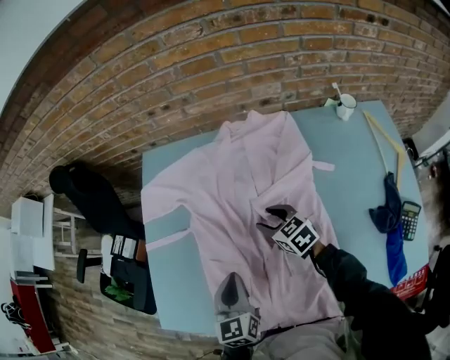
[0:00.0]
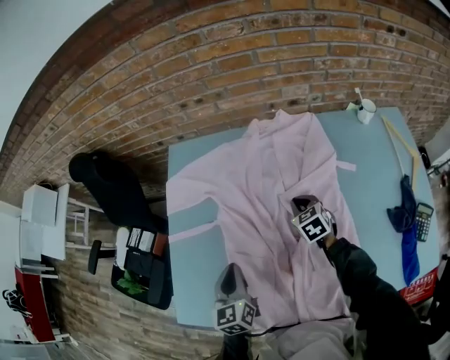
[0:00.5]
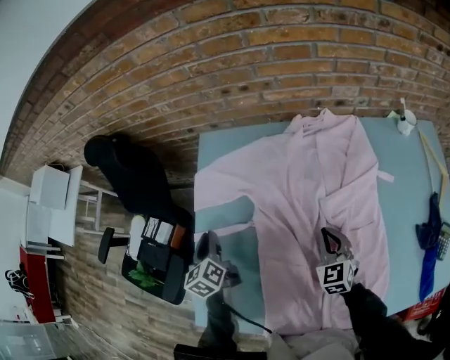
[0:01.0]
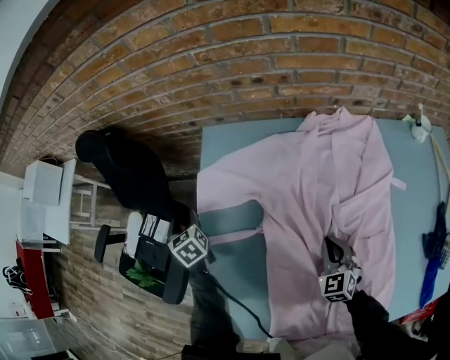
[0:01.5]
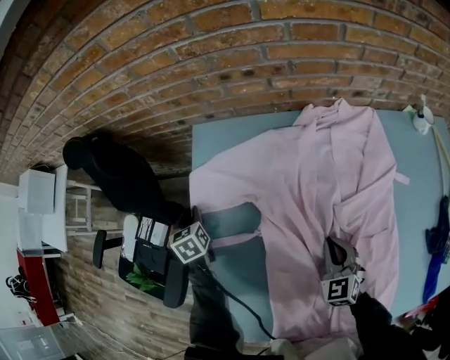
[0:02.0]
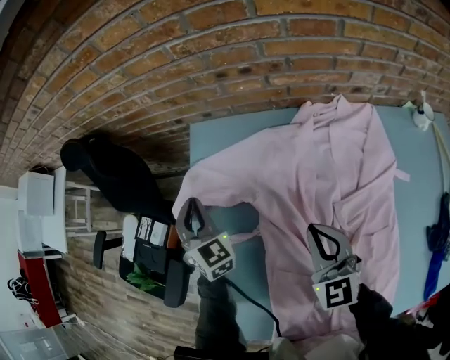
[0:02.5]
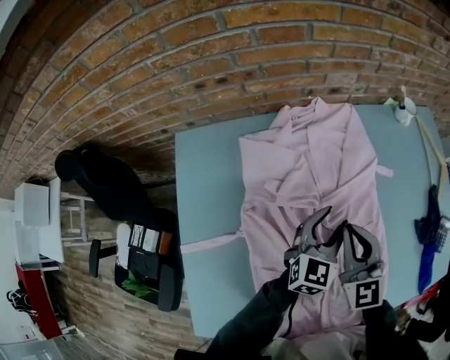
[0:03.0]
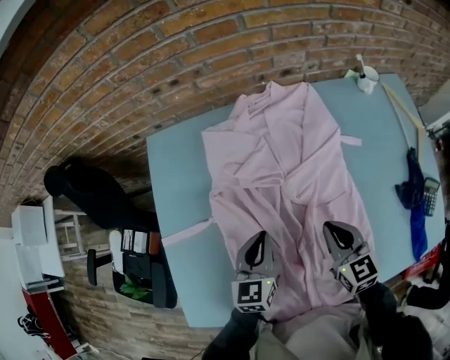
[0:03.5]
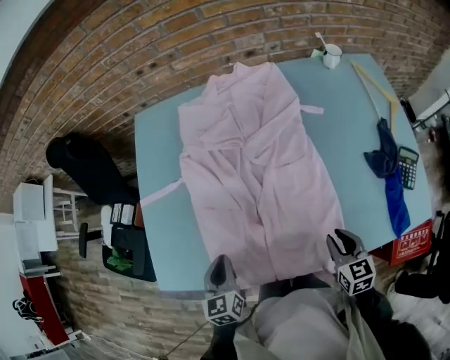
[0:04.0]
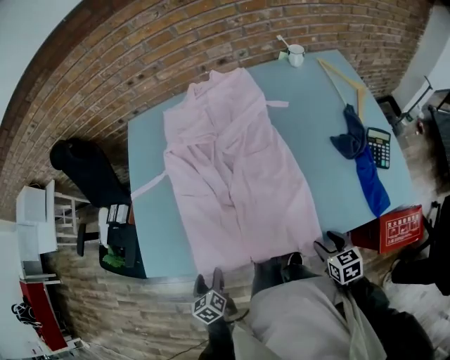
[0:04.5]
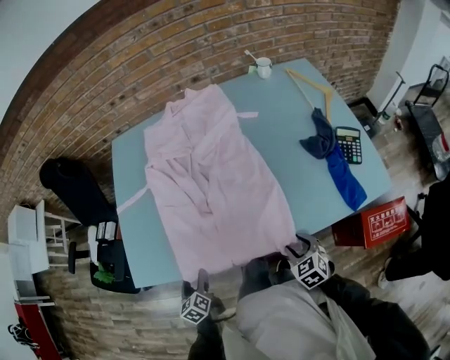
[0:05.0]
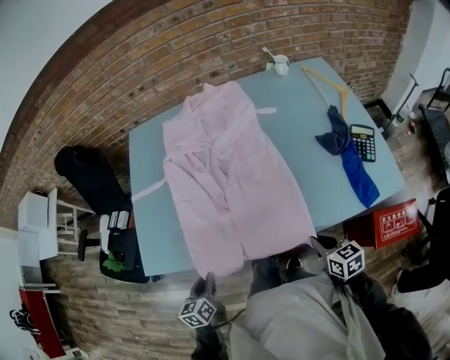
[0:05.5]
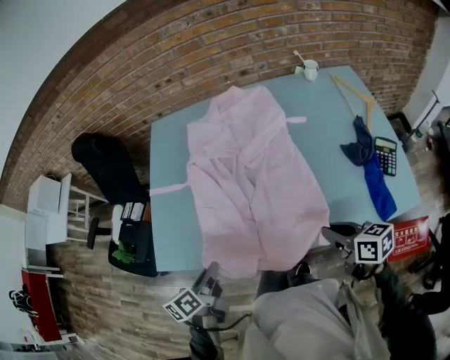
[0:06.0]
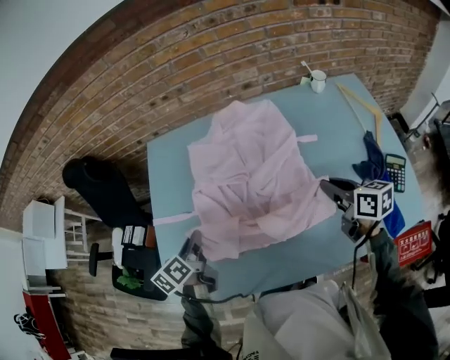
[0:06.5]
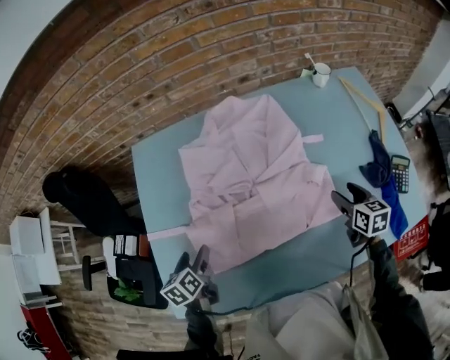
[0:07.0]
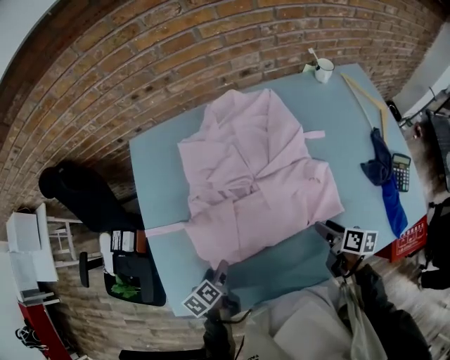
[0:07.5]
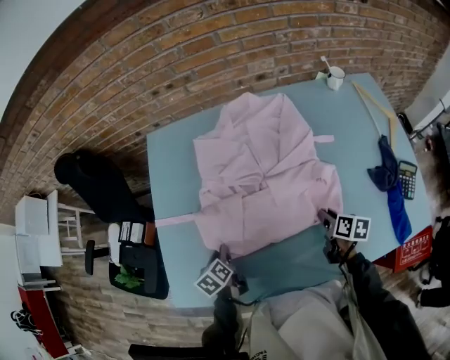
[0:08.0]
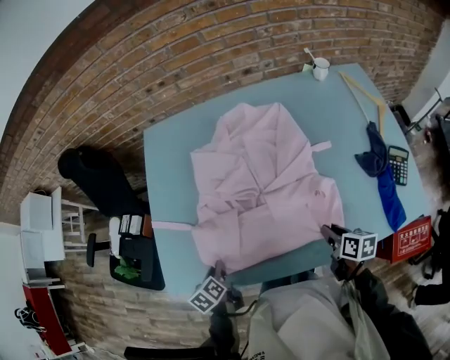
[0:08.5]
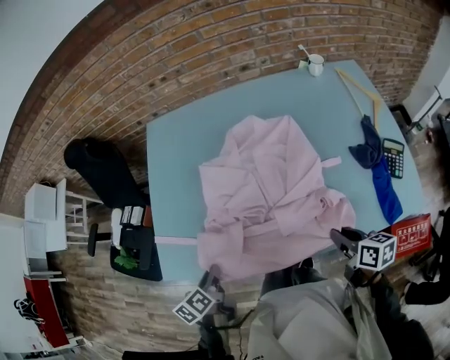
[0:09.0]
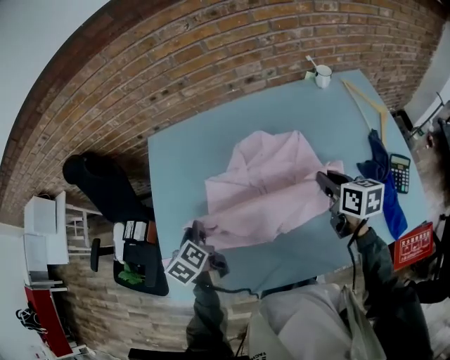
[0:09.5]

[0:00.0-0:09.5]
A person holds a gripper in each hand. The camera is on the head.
0:00.0 to 0:02.0: The right gripper goes about 5 cm to the left, turns by approximately 30 degrees, and closes its fingers. The left gripper moves forward and to the left, about 40 cm, and turns by roughly 30 degrees.
0:02.0 to 0:04.0: The left gripper ends up approximately 50 cm from where it was, and turns by about 20 degrees; the right gripper moves roughly 15 cm upward and comes back, and turns by roughly 40 degrees.
0:04.0 to 0:05.5: Both grippers travel together backward, some 15 cm. The left gripper opens, then closes again, while the right gripper opens, then closes again.
0:05.5 to 0:07.5: Both grippers travel together forward, roughly 20 cm. The right gripper rotates about 40 degrees, and opens its fingers. Meanwhile the left gripper rotates about 30 degrees, and opens its fingers.
0:07.5 to 0:09.5: The left gripper swings forward and backward, approximately 25 cm each way, with 2 reversals, swivels roughly 30 degrees, and closes its fingers. The right gripper swings forward and backward, approximately 25 cm each way, with 2 reversals, changes its angle by approximately 30 degrees, and closes.

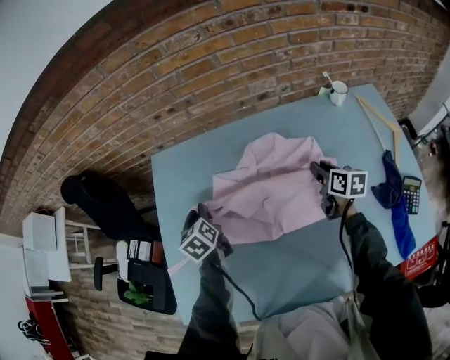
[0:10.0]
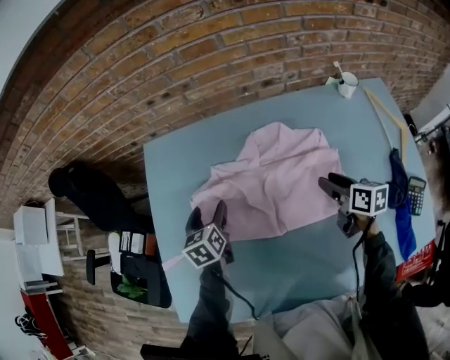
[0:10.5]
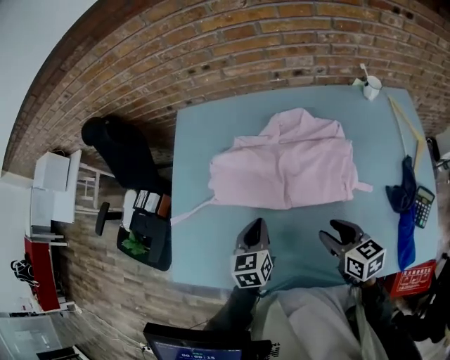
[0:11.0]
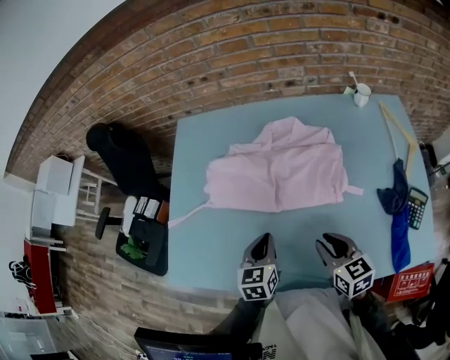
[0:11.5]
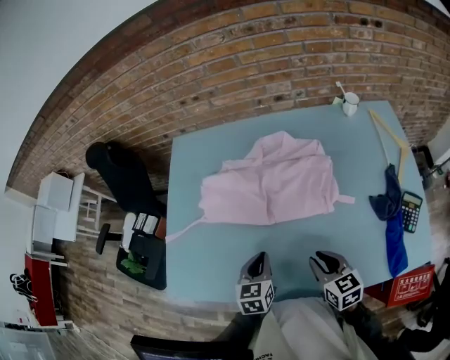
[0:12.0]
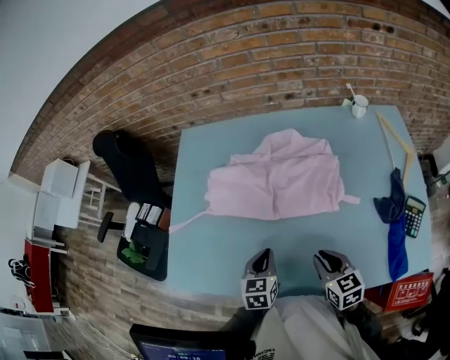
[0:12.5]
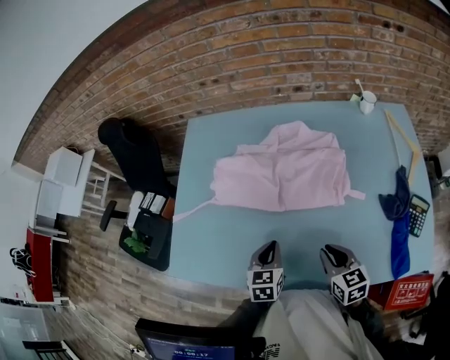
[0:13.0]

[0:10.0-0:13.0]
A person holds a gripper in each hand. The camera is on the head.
0:10.0 to 0:11.5: The left gripper heads backward and to the right, covering about 30 cm, changes its angle by about 20 degrees, and opens, then closes once more. The right gripper goes about 30 cm backward and to the left, swivels roughly 30 degrees, and opens and closes again.
0:11.5 to 0:13.0: The grippers move only a little.

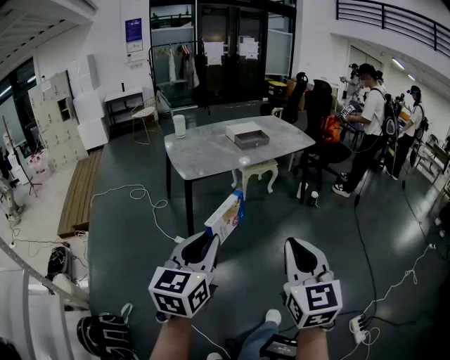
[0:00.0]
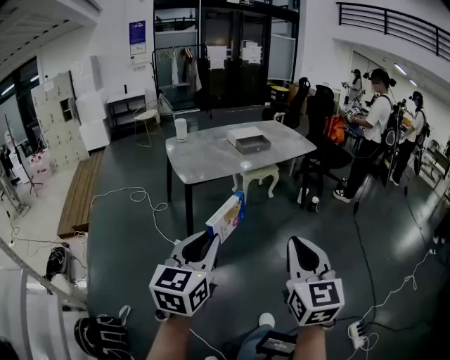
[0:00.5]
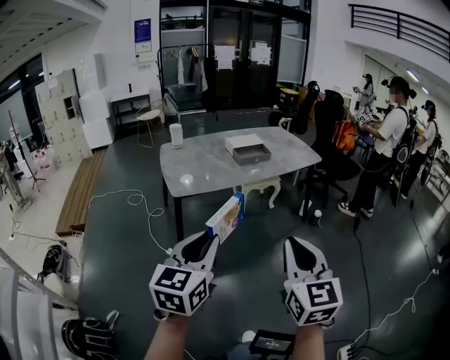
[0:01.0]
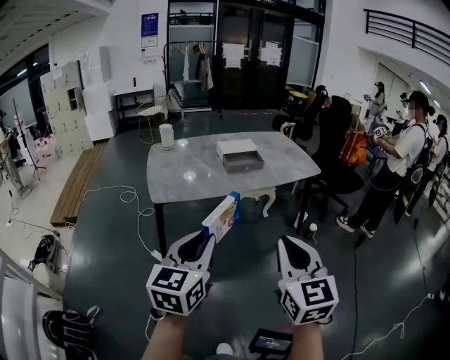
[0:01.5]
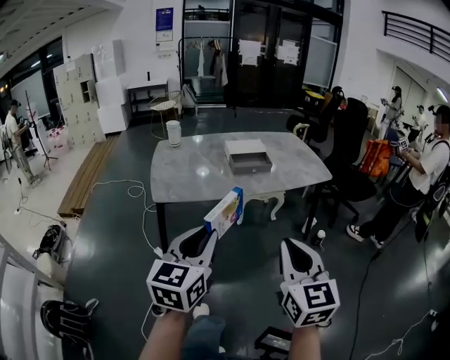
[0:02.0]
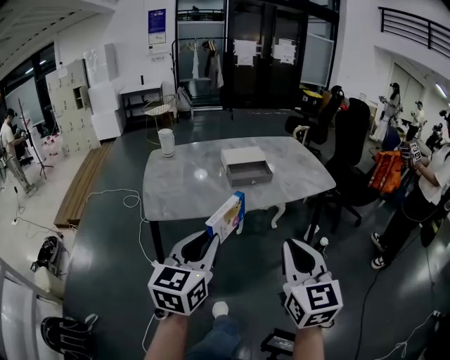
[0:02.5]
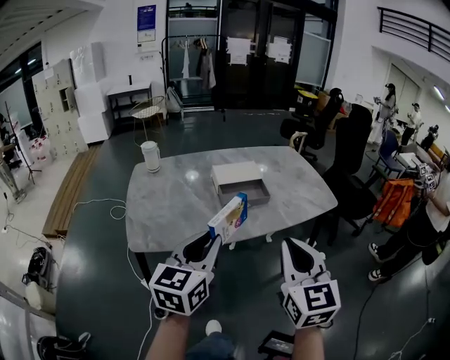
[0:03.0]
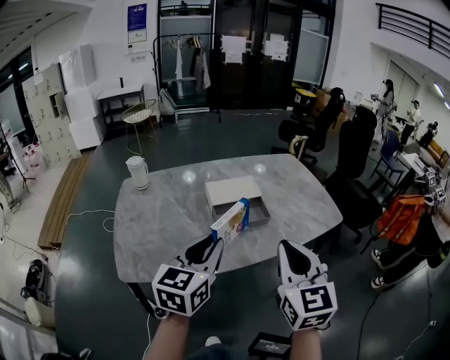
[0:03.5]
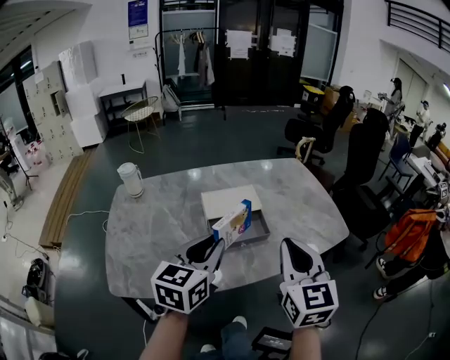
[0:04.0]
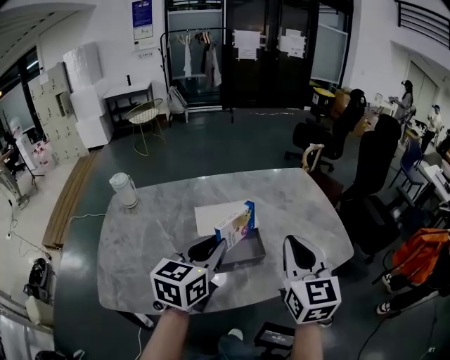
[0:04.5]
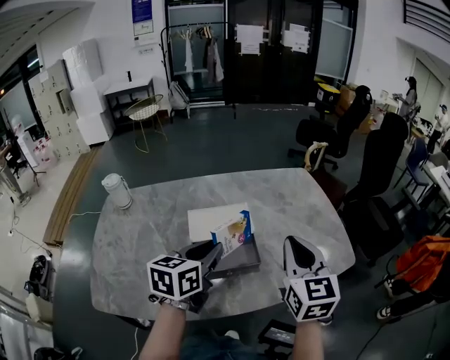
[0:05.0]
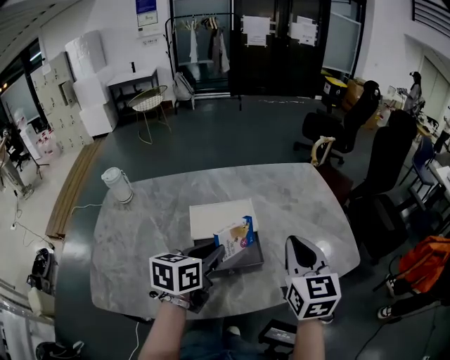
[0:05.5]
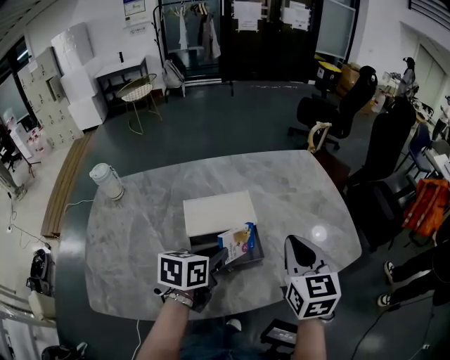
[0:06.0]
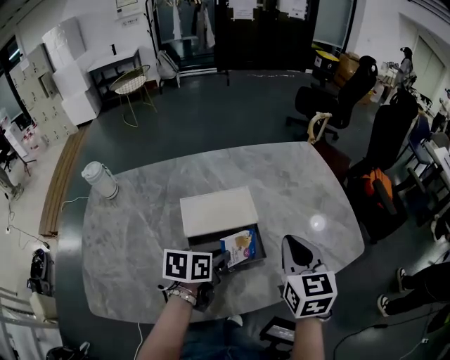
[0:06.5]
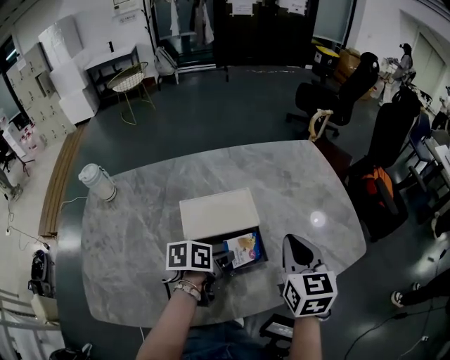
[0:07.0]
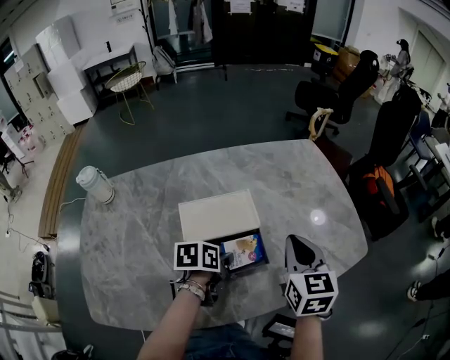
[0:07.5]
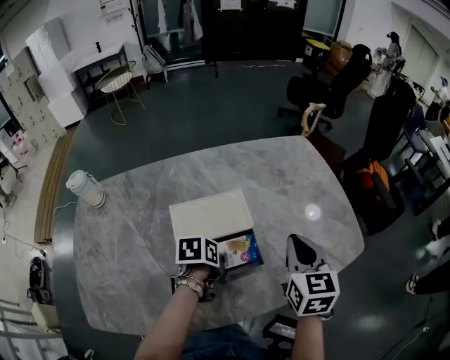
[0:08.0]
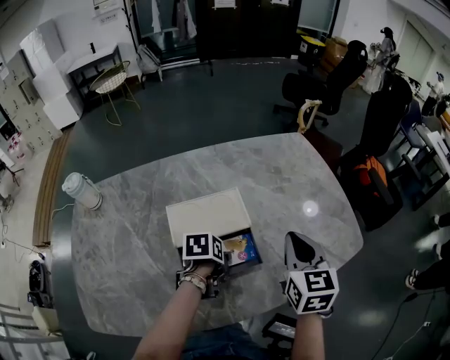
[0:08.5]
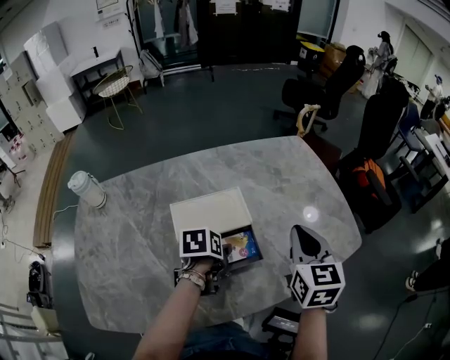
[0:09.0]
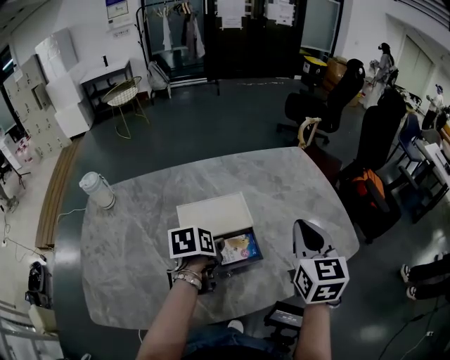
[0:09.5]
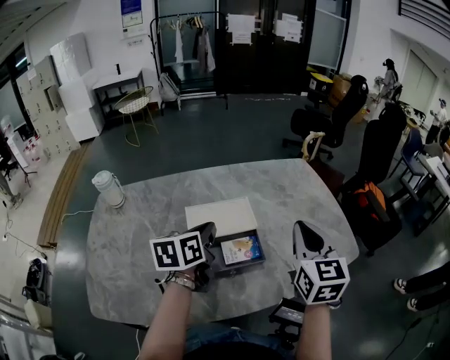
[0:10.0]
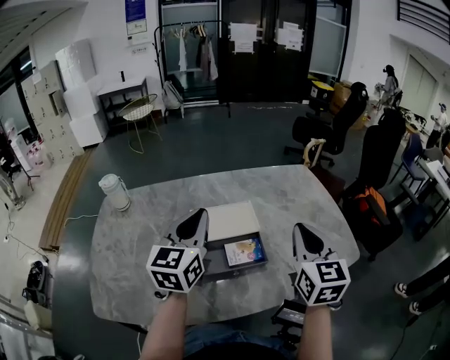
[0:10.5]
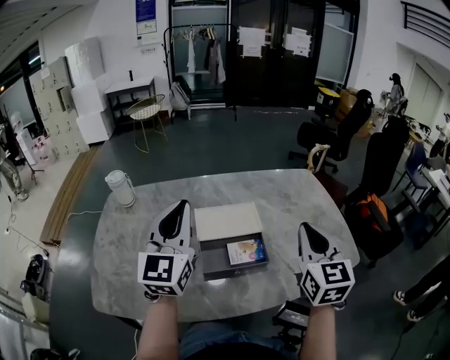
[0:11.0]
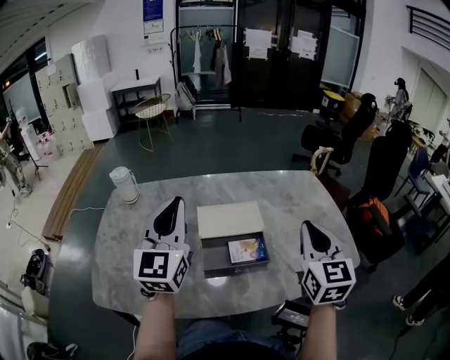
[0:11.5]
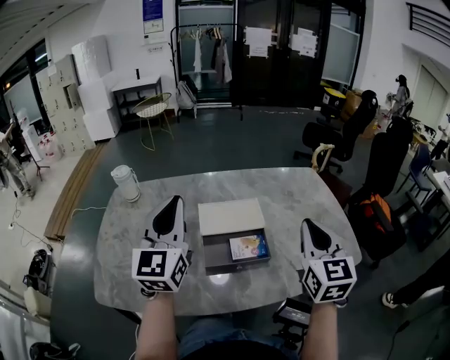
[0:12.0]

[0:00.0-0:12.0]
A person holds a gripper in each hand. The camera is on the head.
0:00.0 to 0:02.0: Both grippers move forward and to the right, some 35 cm.
0:02.0 to 0:04.0: The pair of grippers is taken forward, approximately 50 cm.
0:04.0 to 0:06.0: The right gripper goes approximately 20 cm forward and downward; the left gripper shifts about 20 cm downward and forward, and rotates approximately 30 degrees.
0:06.0 to 0:08.0: The right gripper heads downward, covering roughly 5 cm. The left gripper heads downward, covering approximately 15 cm, and swivels about 30 degrees.
0:08.0 to 0:10.0: The right gripper goes approximately 10 cm upward. Meanwhile the left gripper moves upward, some 20 cm, angles its fingers upward, by approximately 30 degrees, and closes up.
0:10.0 to 0:12.0: The left gripper travels upward, to the left and backward by approximately 20 cm, and tips its fingers upward by roughly 30 degrees.

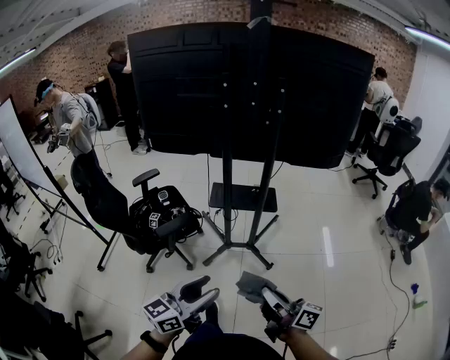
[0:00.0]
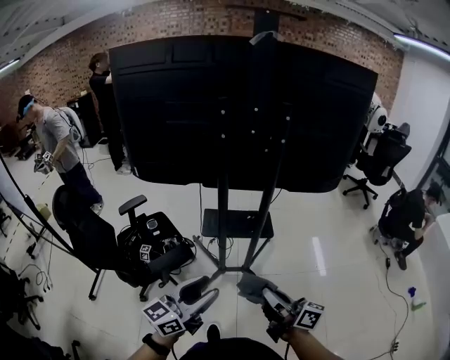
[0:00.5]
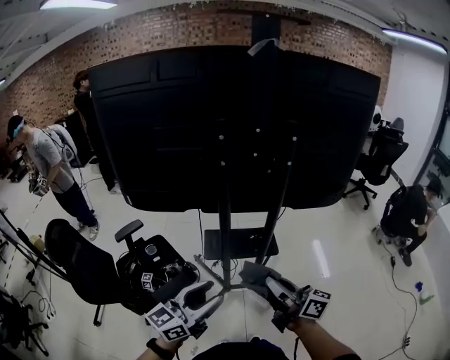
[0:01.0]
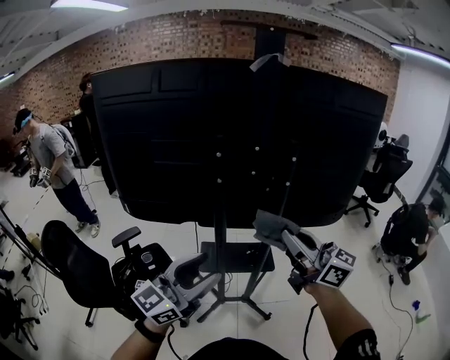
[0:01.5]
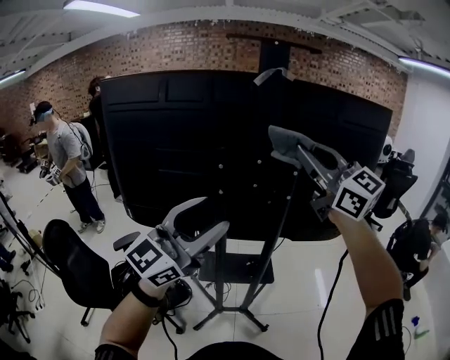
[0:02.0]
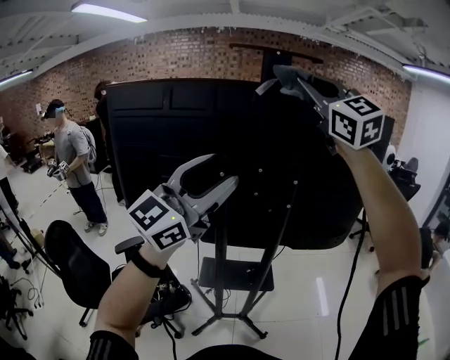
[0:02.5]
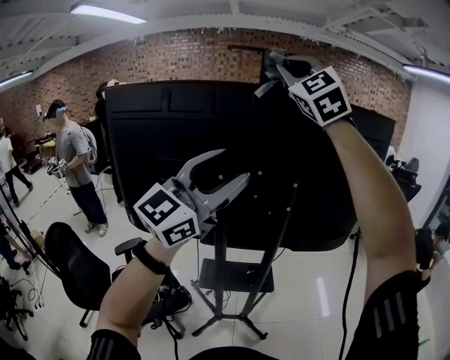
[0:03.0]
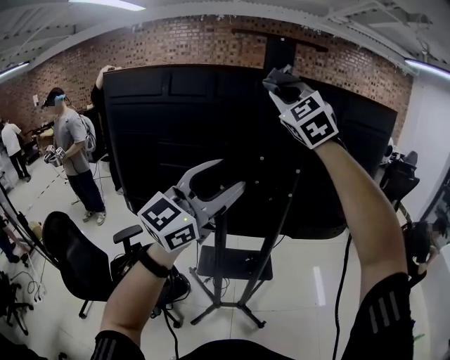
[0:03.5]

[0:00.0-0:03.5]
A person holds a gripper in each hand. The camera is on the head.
0:00.0 to 0:02.0: The left gripper moves forward and upward, approximately 50 cm, and changes its angle by some 40 degrees, while the right gripper heads upward and forward, covering roughly 70 cm, and rotates around the line of its fingers by some 70 degrees, counterclockwise from behind.
0:02.0 to 0:03.5: The left gripper moves forward, some 5 cm. Meanwhile the right gripper shifts some 15 cm forward, to the left and upward, and rolls counterclockwise, seen from behind, by about 40 degrees.
